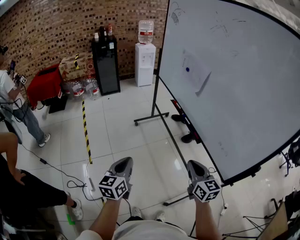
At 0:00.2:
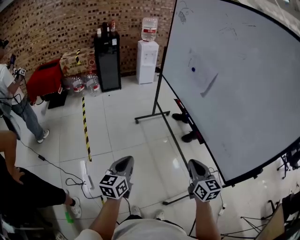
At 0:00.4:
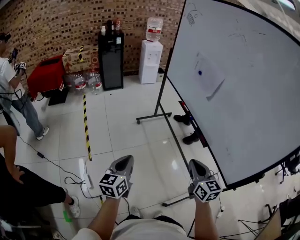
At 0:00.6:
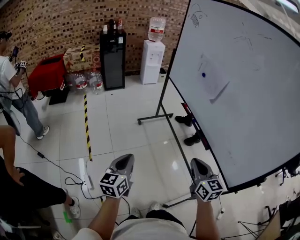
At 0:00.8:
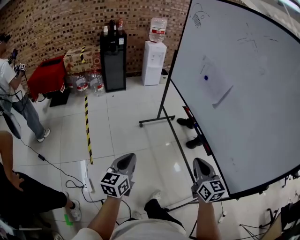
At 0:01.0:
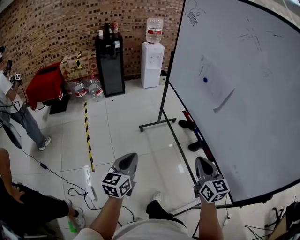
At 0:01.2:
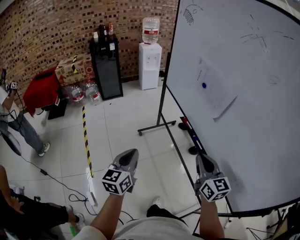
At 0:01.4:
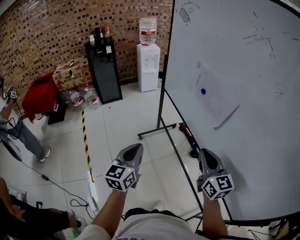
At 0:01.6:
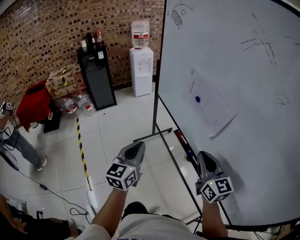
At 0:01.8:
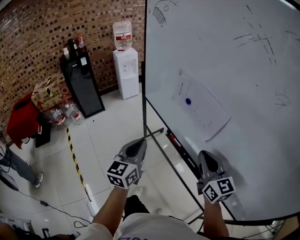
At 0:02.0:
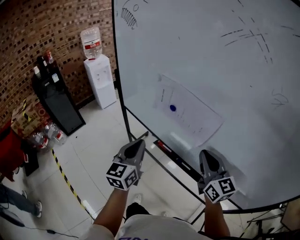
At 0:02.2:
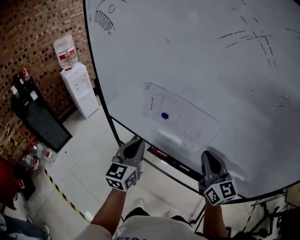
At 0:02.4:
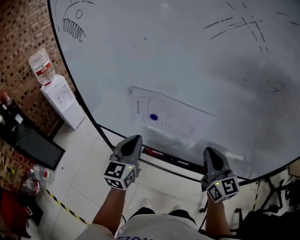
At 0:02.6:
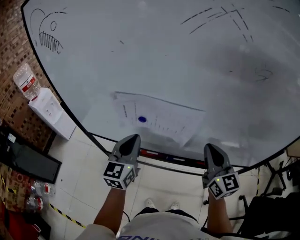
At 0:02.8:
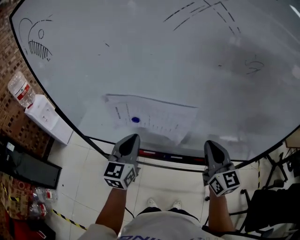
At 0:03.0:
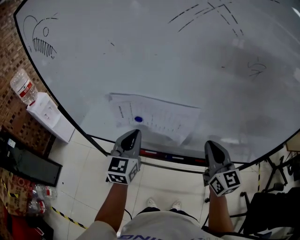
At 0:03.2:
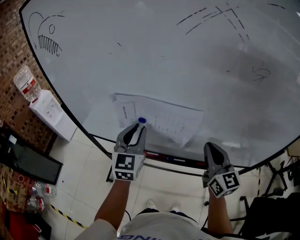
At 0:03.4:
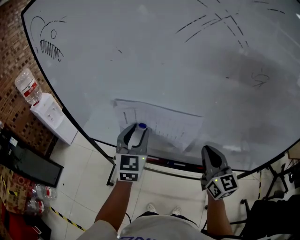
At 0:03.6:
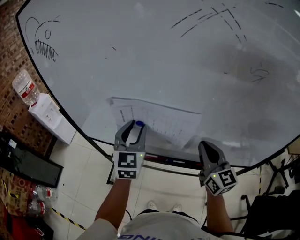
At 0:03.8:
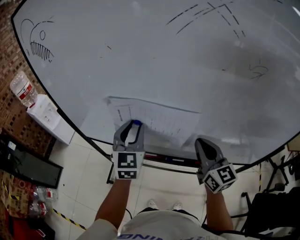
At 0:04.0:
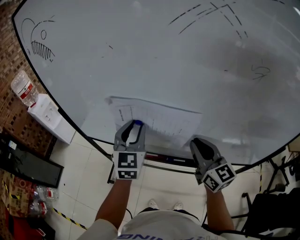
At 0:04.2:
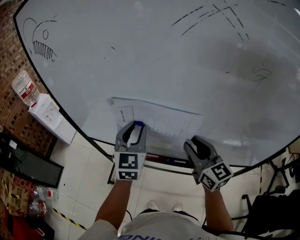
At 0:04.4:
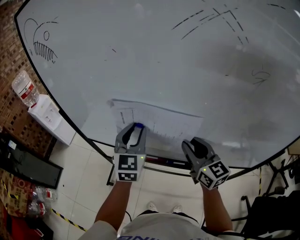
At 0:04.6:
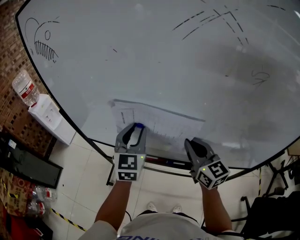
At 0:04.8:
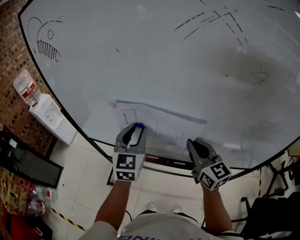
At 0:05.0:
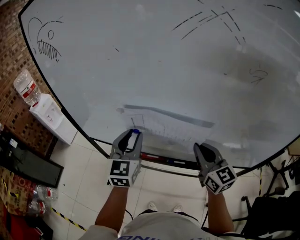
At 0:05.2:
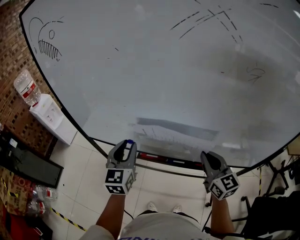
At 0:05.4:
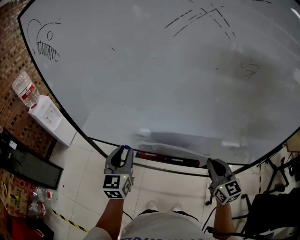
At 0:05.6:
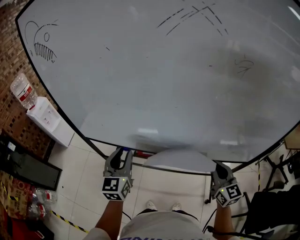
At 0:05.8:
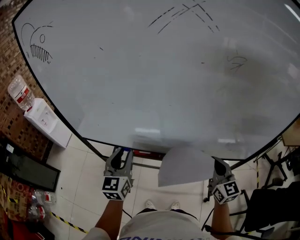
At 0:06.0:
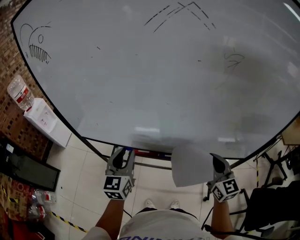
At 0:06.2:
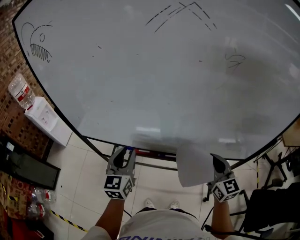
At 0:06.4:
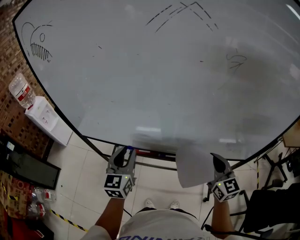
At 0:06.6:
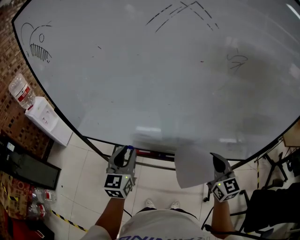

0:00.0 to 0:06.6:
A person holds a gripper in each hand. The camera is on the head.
0:00.0 to 0:01.6: The two grippers go roughly 35 cm forward.
0:01.6 to 0:03.2: The right gripper ends up some 10 cm from where it was, and swivels approximately 50 degrees. The left gripper changes place by roughly 30 cm, and swivels roughly 50 degrees.
0:03.2 to 0:05.0: The right gripper opens and closes again.
0:05.0 to 0:06.6: The right gripper travels to the right and backward by approximately 15 cm; the left gripper heads backward and downward, covering some 10 cm.

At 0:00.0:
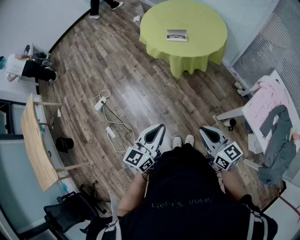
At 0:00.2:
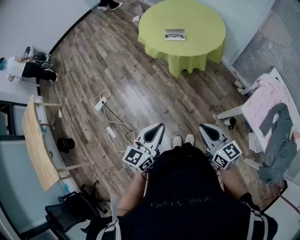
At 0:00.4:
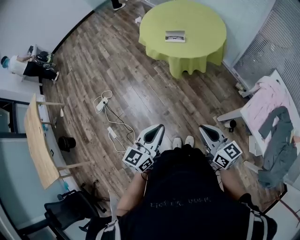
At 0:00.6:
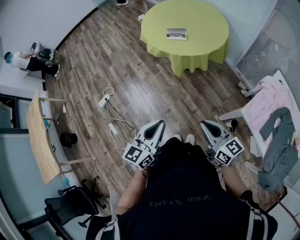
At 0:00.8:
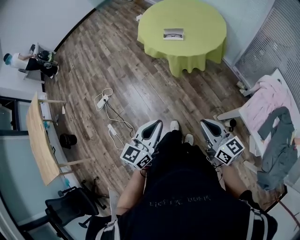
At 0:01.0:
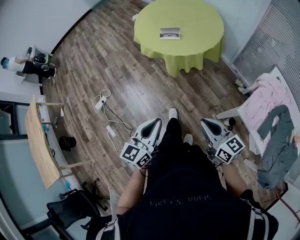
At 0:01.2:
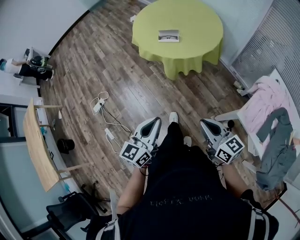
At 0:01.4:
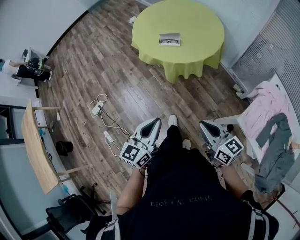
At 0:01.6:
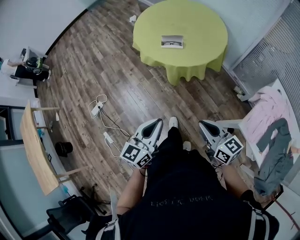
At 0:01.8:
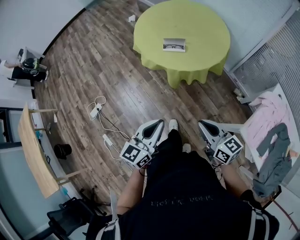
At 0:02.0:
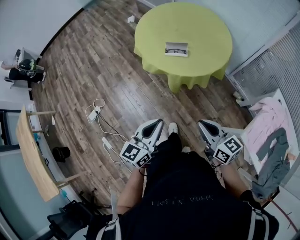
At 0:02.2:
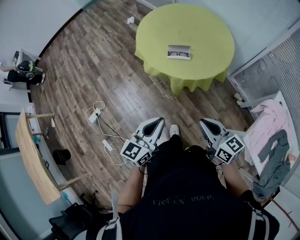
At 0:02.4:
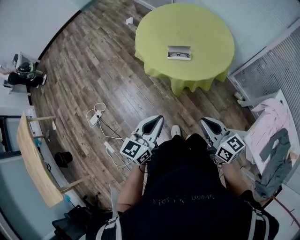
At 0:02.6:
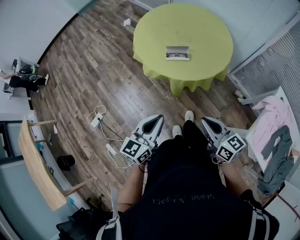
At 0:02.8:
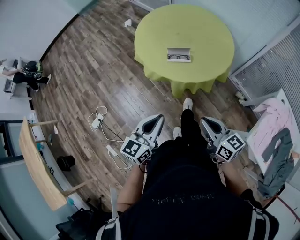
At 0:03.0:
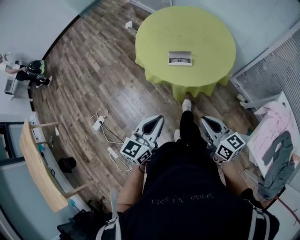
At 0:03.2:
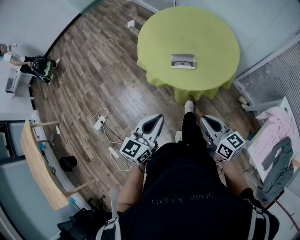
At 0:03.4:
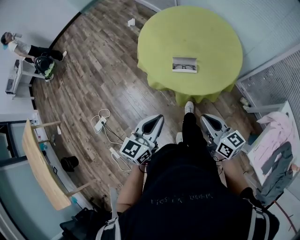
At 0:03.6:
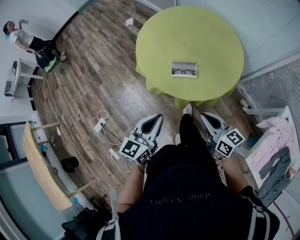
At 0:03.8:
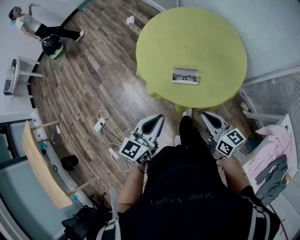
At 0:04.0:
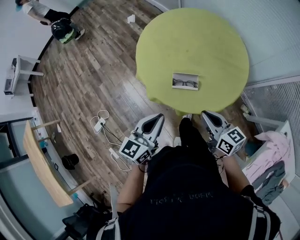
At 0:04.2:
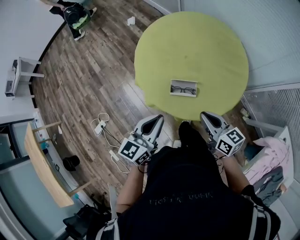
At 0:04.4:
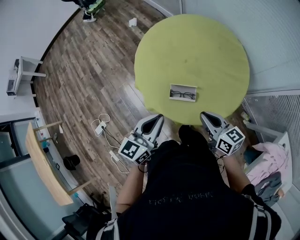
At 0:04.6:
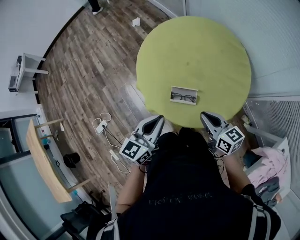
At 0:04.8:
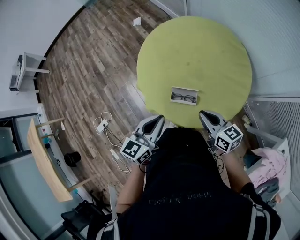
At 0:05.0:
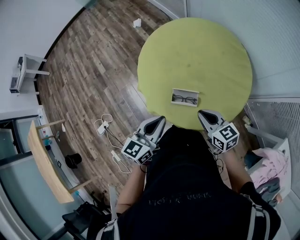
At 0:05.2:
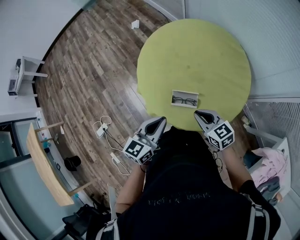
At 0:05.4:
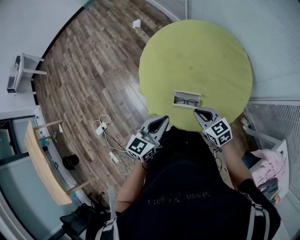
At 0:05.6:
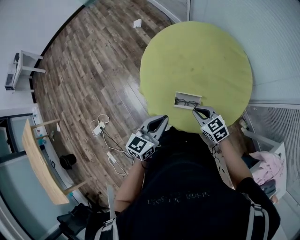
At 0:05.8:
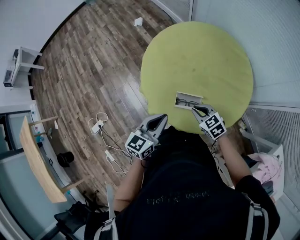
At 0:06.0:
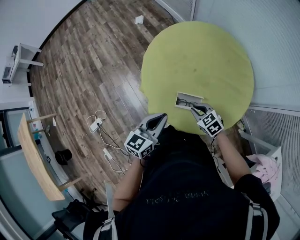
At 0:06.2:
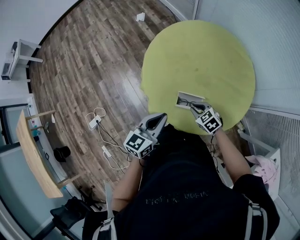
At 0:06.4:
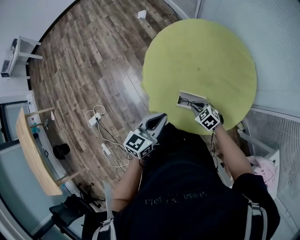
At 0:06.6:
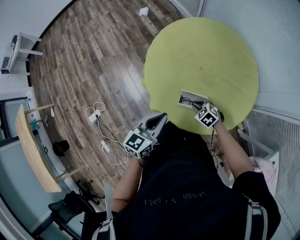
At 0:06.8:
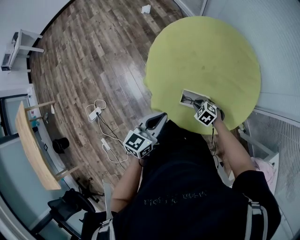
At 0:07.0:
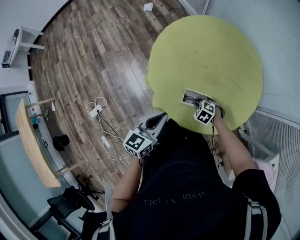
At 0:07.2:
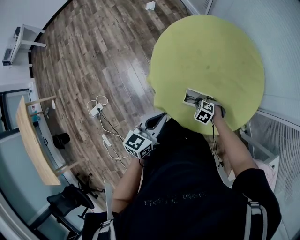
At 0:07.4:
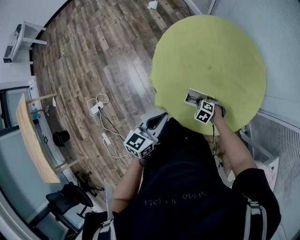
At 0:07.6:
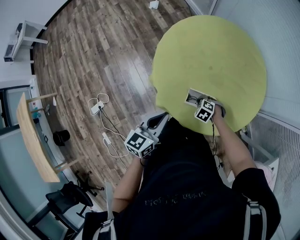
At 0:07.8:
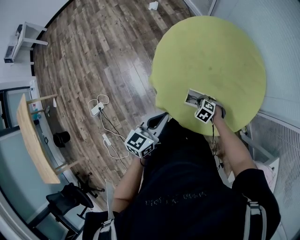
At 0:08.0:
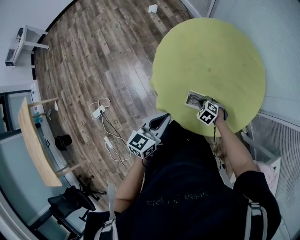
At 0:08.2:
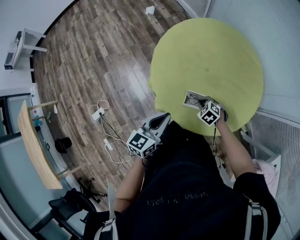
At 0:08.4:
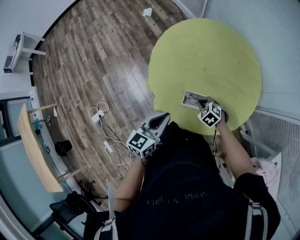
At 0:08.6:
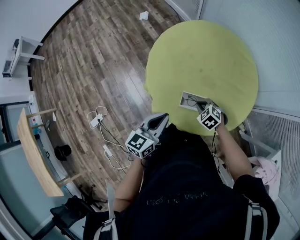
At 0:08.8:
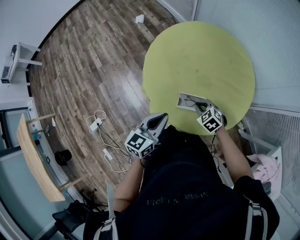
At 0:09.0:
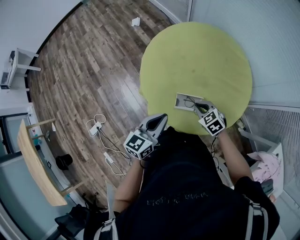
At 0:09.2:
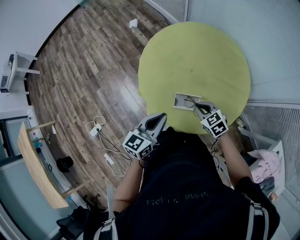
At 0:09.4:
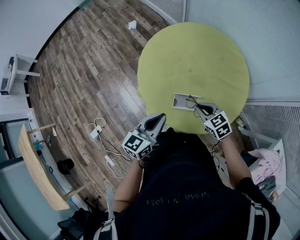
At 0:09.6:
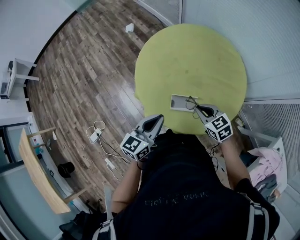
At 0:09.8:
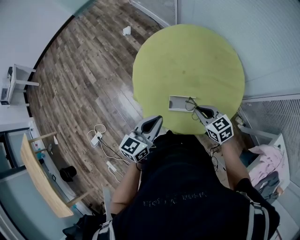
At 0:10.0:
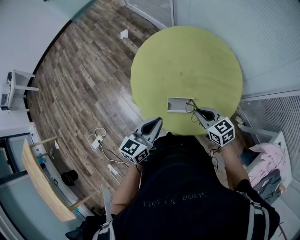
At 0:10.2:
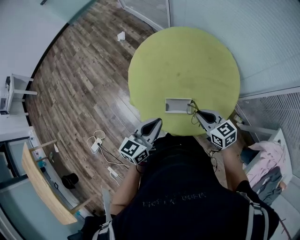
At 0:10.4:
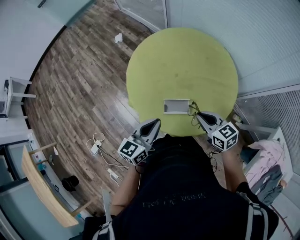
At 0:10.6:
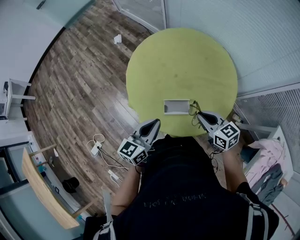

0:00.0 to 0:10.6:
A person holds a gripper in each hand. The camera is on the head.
0:00.0 to 0:01.6: The two grippers go roughly 15 cm forward and to the right.
0:01.6 to 0:03.0: Both grippers travel together forward, approximately 15 cm.
0:03.0 to 0:04.6: The two grippers go about 30 cm forward.
0:04.6 to 0:06.0: The right gripper moves downward, to the left and forward, about 15 cm, and tilts its fingers roughly 30 degrees downward. Meanwhile the left gripper shifts by approximately 5 cm.
0:06.0 to 0:07.6: The right gripper is displaced downward by roughly 15 cm, and swivels roughly 40 degrees.
0:07.6 to 0:09.0: The right gripper moves upward, roughly 15 cm, and rotates approximately 40 degrees.
0:09.0 to 0:10.6: The right gripper heads upward and to the right, covering approximately 15 cm, and changes its angle by approximately 40 degrees.

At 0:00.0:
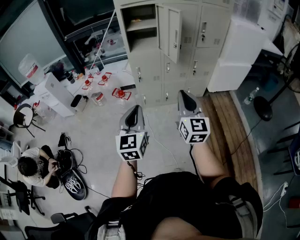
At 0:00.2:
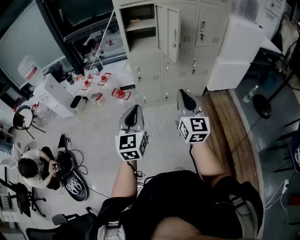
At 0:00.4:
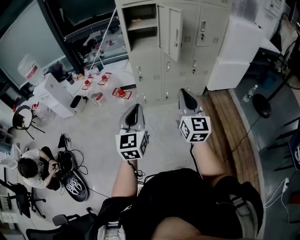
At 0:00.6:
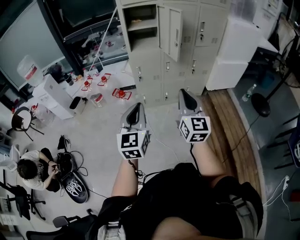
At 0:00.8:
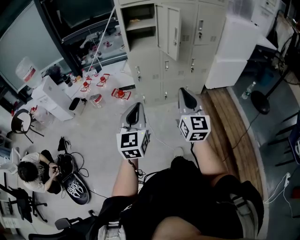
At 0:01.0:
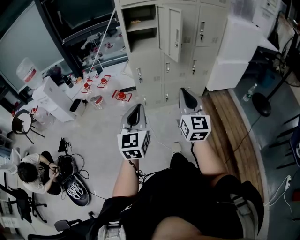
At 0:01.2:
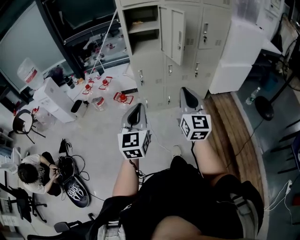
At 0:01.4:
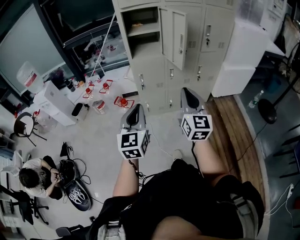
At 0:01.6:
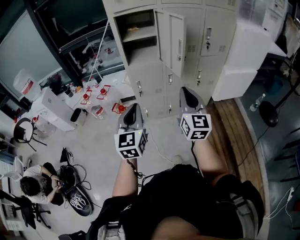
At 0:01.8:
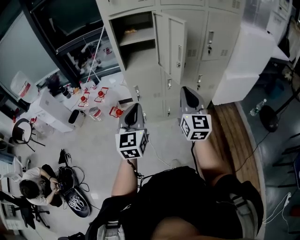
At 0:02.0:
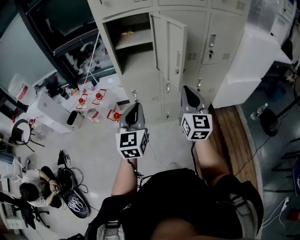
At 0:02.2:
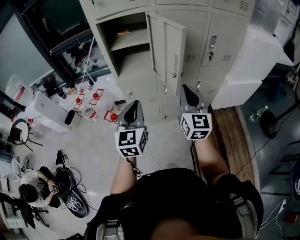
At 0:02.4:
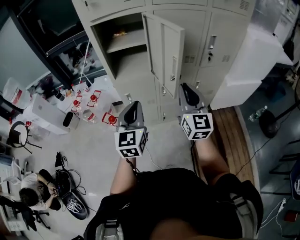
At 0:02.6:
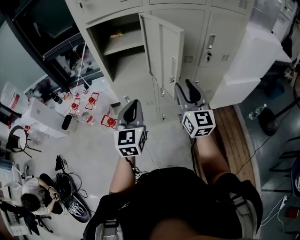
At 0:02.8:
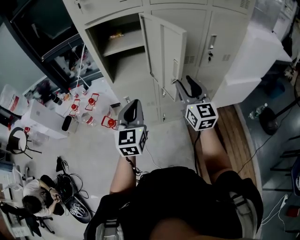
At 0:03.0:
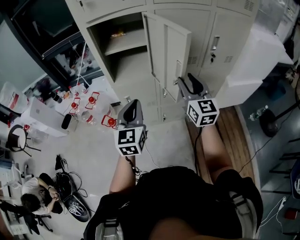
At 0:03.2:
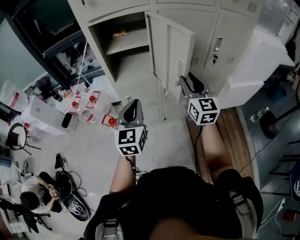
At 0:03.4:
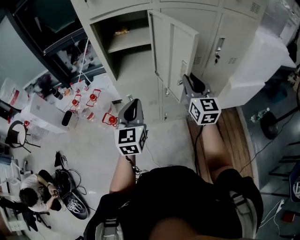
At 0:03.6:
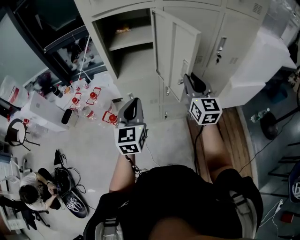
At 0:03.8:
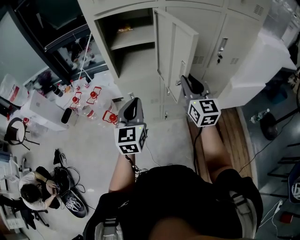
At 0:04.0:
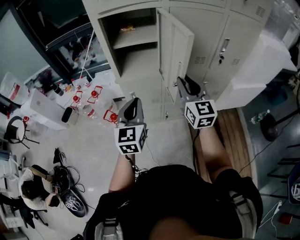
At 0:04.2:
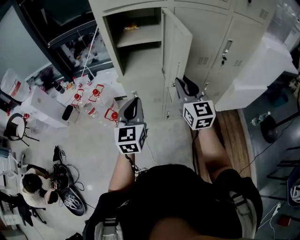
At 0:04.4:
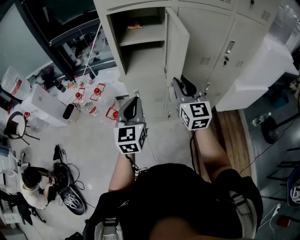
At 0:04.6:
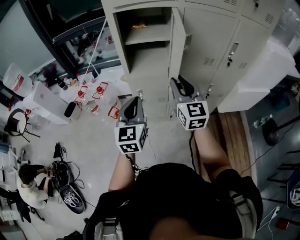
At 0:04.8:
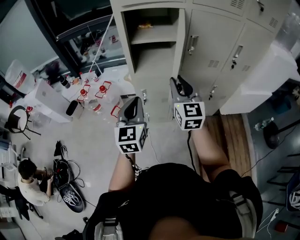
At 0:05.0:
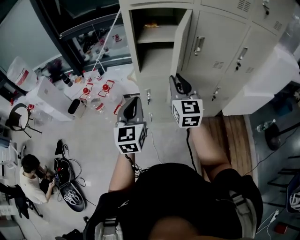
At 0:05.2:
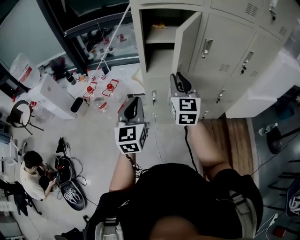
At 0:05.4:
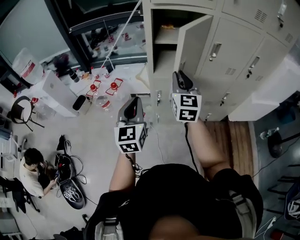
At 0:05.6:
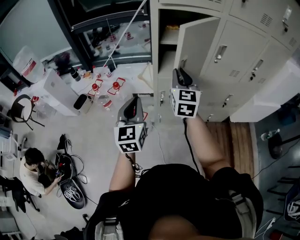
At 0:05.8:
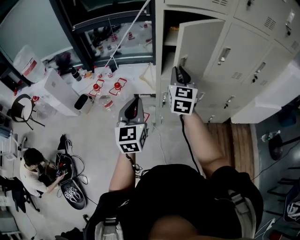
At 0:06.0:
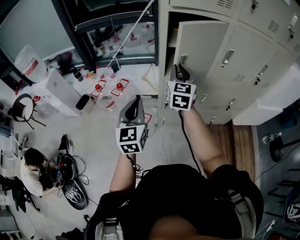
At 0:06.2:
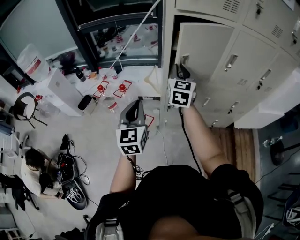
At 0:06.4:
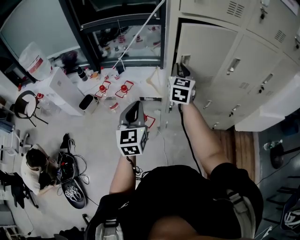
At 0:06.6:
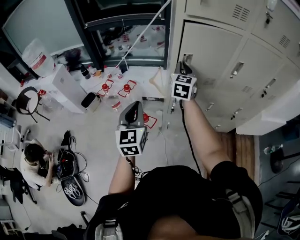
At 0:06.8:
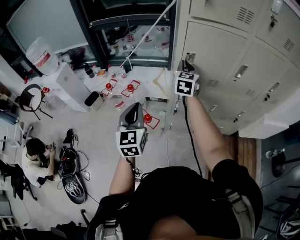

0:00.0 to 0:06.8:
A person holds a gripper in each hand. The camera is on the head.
0:00.0 to 0:01.4: The two grippers go approximately 10 cm forward.
0:01.4 to 0:02.8: The grippers both shift forward by some 30 cm. The right gripper opens up.
0:02.8 to 0:04.0: The right gripper travels to the left by about 5 cm.
0:04.0 to 0:05.4: The two grippers go some 20 cm to the left.
0:05.4 to 0:06.8: The right gripper moves forward and to the left, approximately 20 cm. The left gripper shifts about 10 cm to the left.
